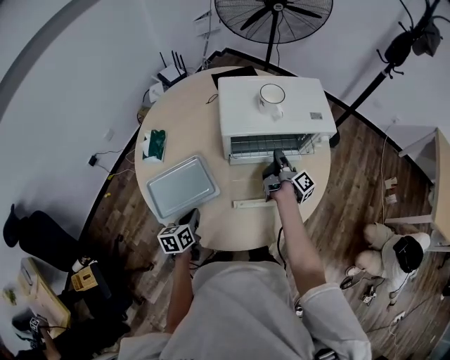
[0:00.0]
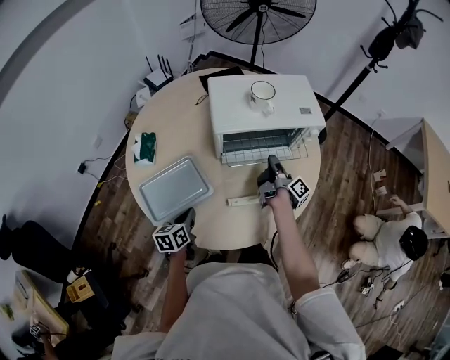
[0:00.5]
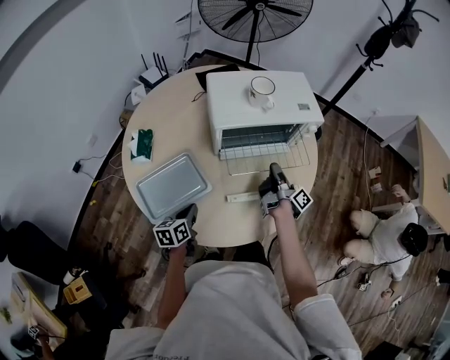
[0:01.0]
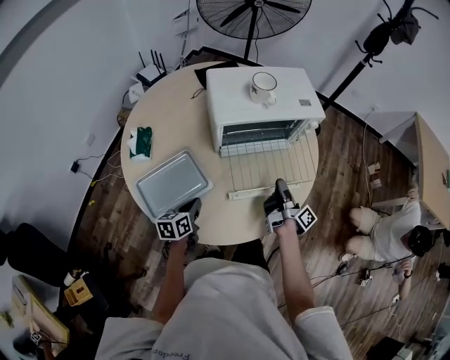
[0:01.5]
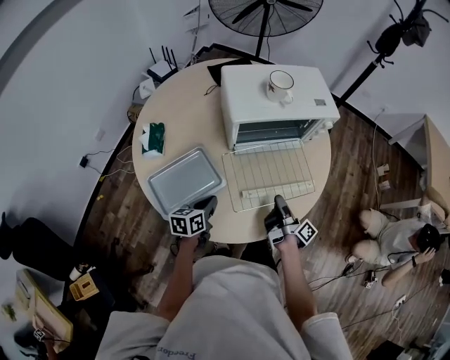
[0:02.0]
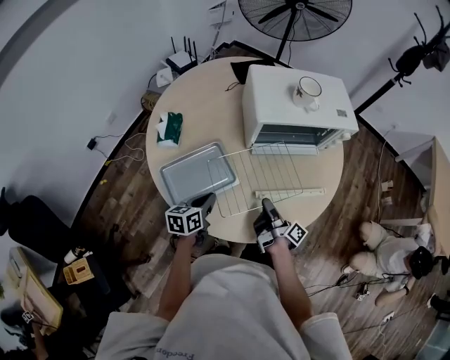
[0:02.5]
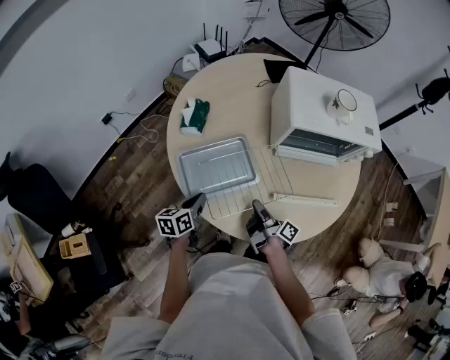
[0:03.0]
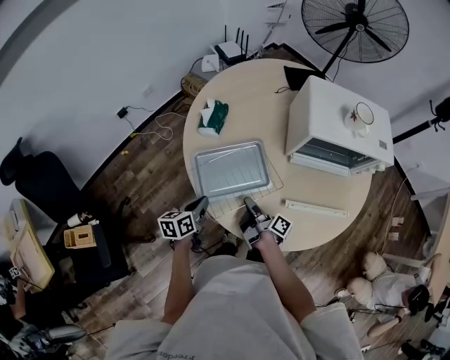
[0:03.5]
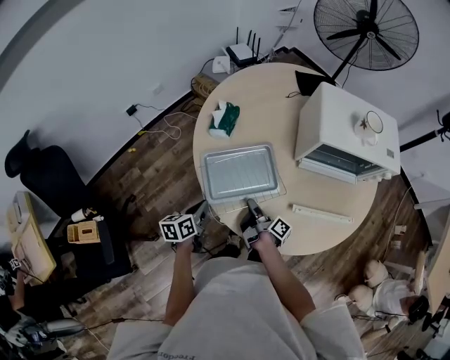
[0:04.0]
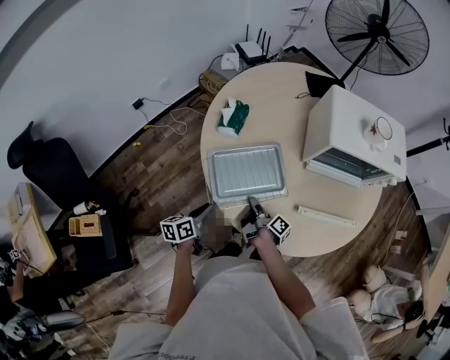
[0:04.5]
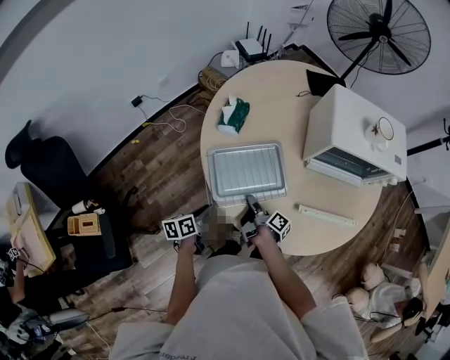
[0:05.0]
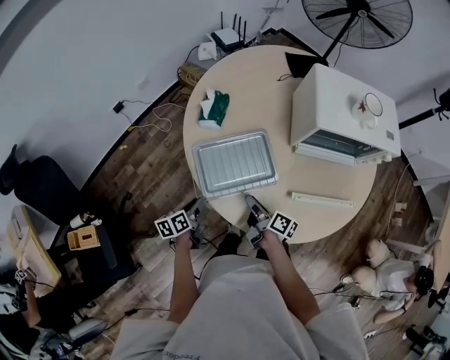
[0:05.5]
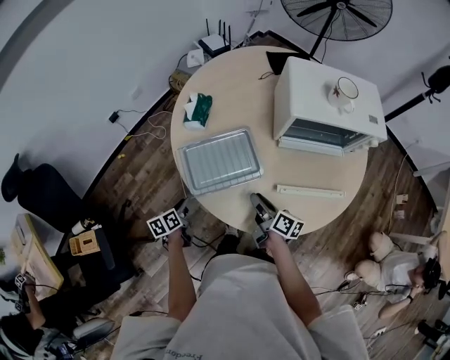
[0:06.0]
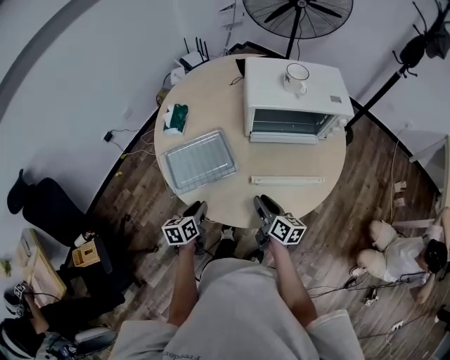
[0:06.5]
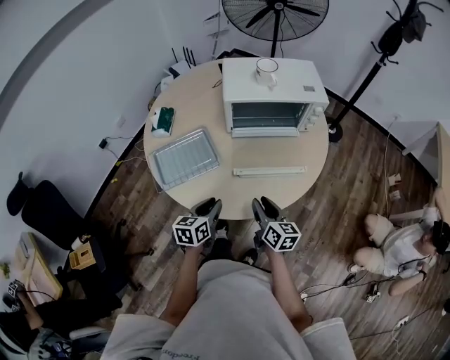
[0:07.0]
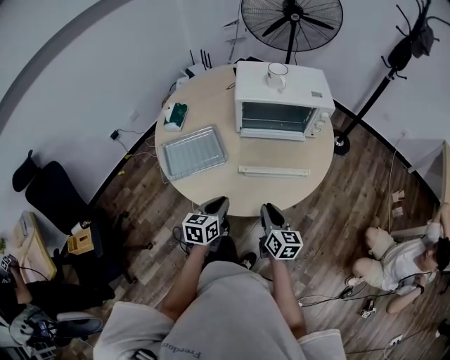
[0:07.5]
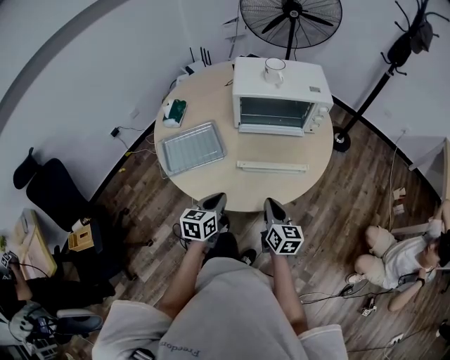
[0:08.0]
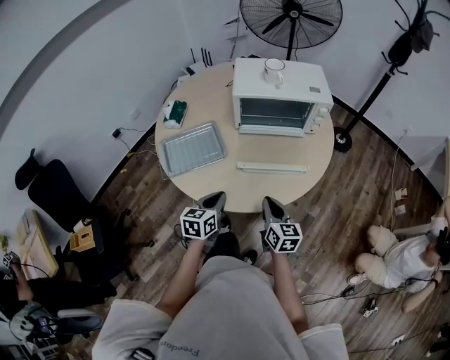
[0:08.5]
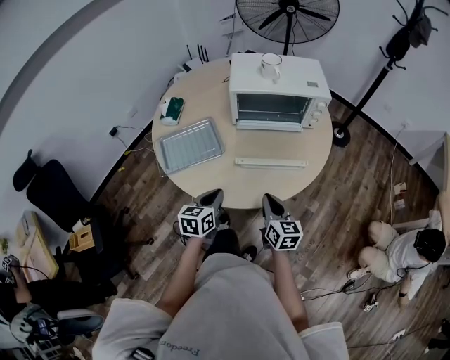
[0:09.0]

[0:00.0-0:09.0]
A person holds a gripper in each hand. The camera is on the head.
0:00.0 to 0:02.0: The left gripper rotates approximately 20 degrees.
0:02.0 to 0:04.5: The left gripper changes place by some 25 cm, and rotates roughly 30 degrees.
0:04.5 to 0:07.0: The left gripper ends up some 30 cm from where it was, and rotates approximately 30 degrees.
0:07.0 to 0:09.0: The left gripper closes.

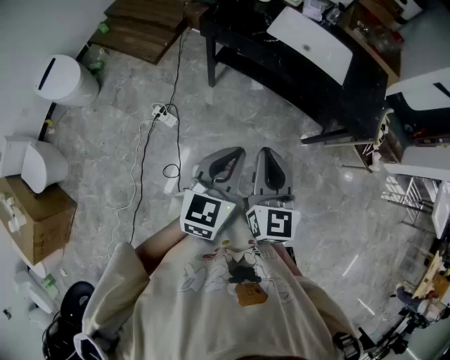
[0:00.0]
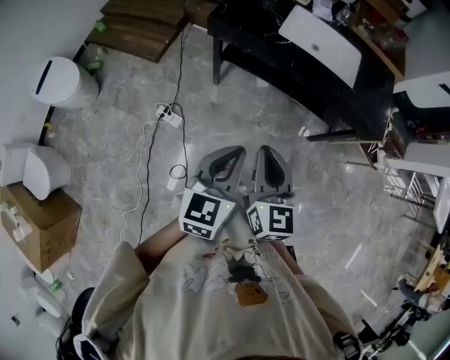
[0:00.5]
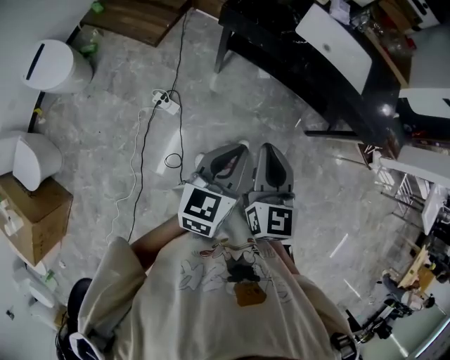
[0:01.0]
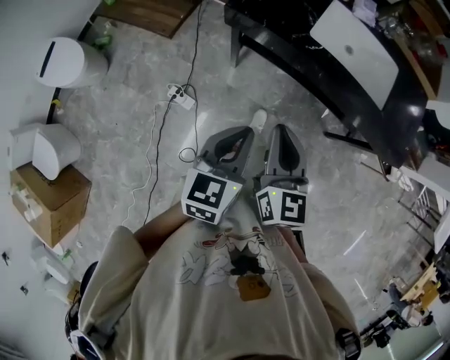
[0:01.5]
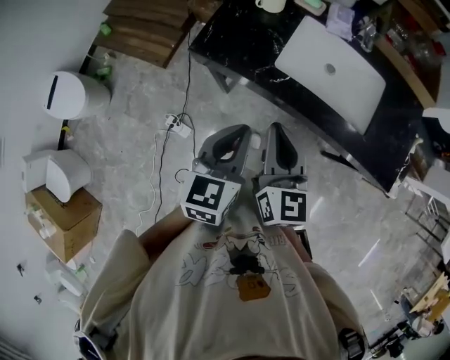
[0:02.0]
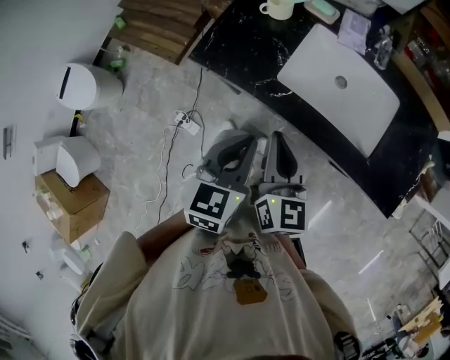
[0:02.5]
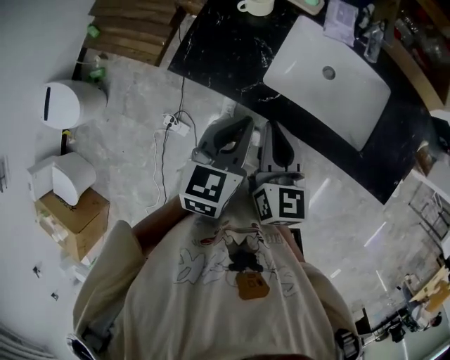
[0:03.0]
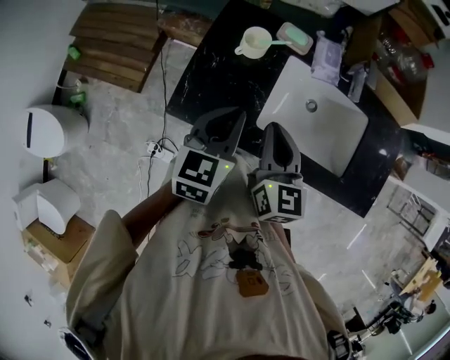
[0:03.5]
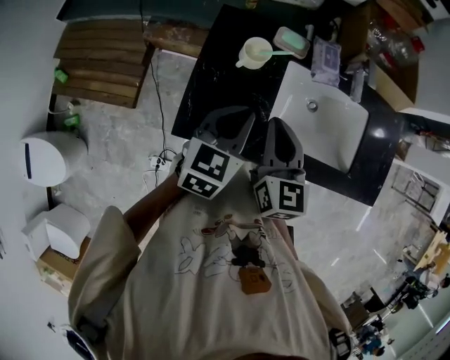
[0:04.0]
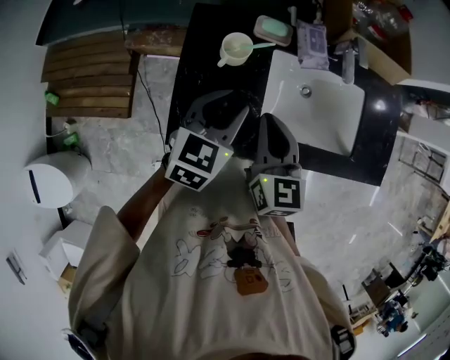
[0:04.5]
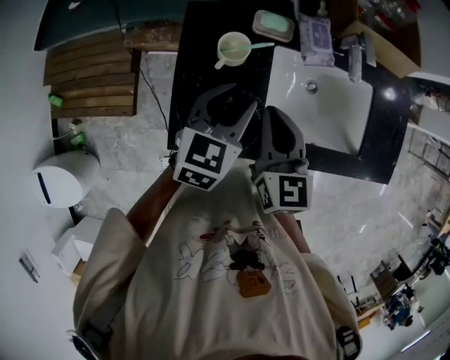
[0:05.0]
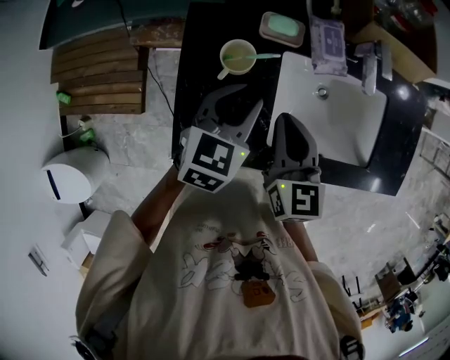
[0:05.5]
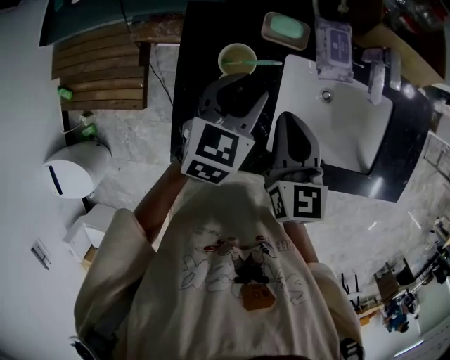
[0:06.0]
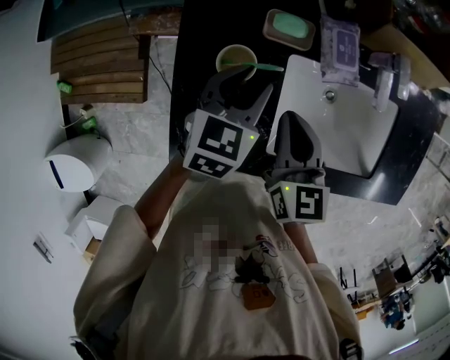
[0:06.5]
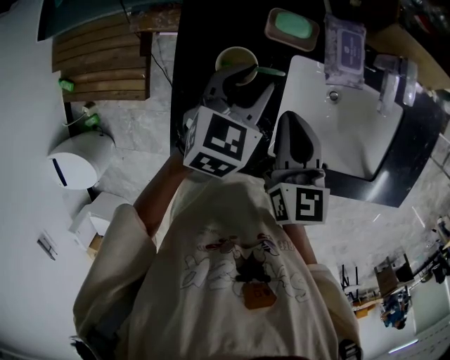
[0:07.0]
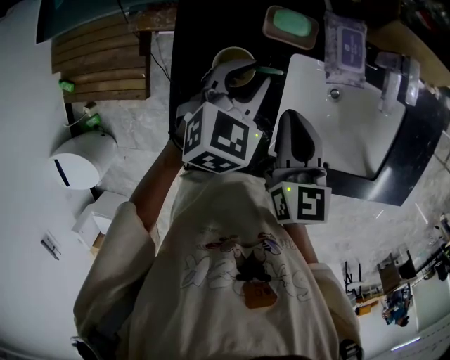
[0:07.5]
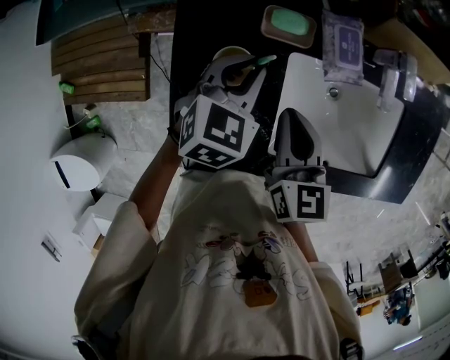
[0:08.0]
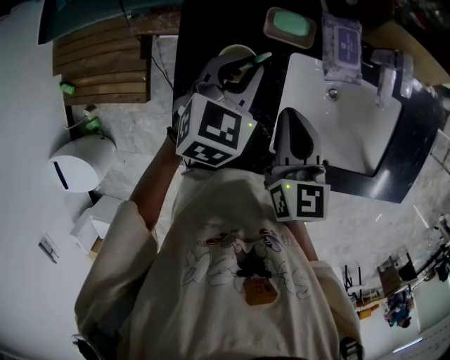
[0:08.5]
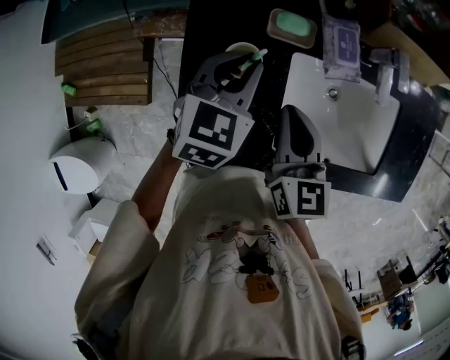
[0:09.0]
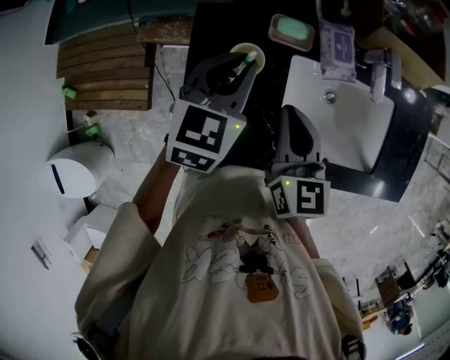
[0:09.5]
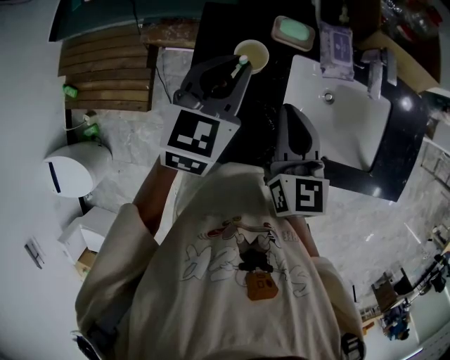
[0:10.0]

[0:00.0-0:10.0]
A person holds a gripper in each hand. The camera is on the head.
0:00.0 to 0:02.0: The two grippers go roughly 40 cm forward.
0:02.0 to 0:04.0: The grippers both shift forward by about 30 cm. The left gripper changes its angle by some 30 degrees.
0:04.0 to 0:06.0: Both grippers move forward and downward, some 15 cm. The left gripper opens up.
0:06.0 to 0:08.0: The left gripper moves forward, about 5 cm, and closes.
0:08.0 to 0:10.0: The left gripper is displaced upward, backward and to the left by about 15 cm, and rotates about 20 degrees; the right gripper moves upward and backward, approximately 10 cm.

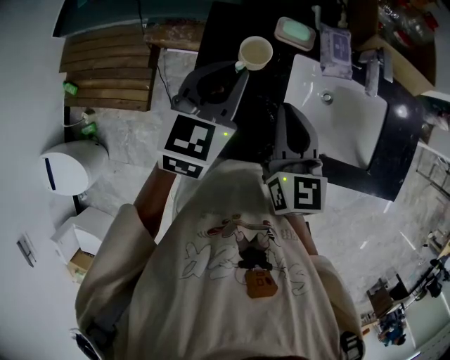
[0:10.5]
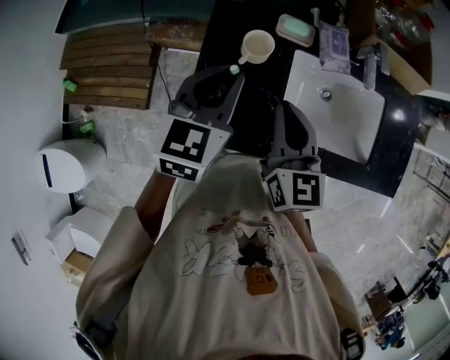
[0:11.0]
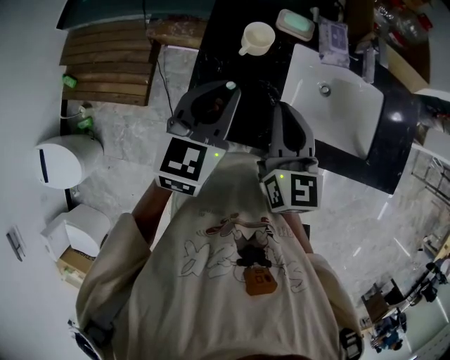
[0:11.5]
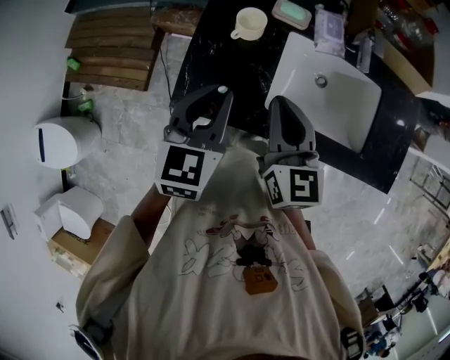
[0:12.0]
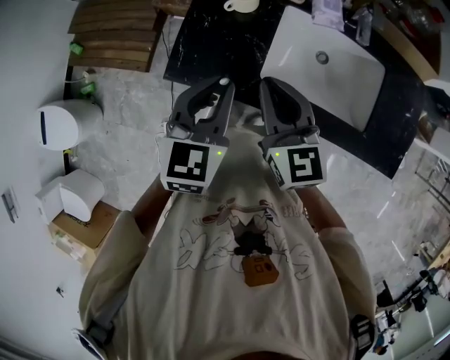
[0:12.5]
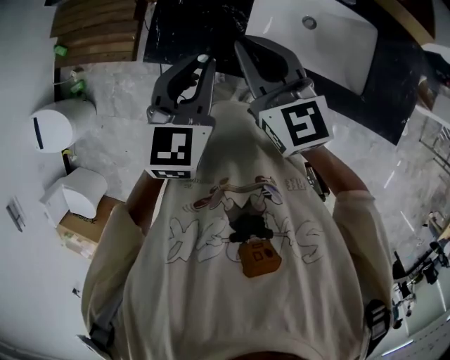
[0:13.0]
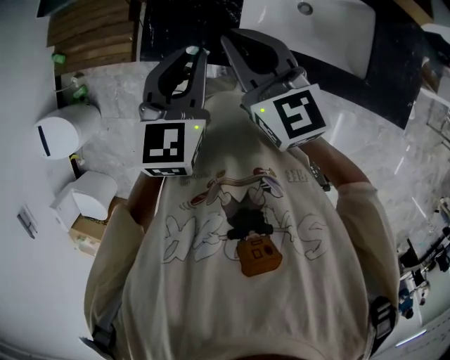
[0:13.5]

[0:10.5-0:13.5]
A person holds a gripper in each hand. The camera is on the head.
0:10.5 to 0:12.0: The right gripper heads backward, covering roughly 10 cm. The left gripper shifts approximately 15 cm backward.
0:12.0 to 0:13.5: The grippers both shift backward by about 5 cm.

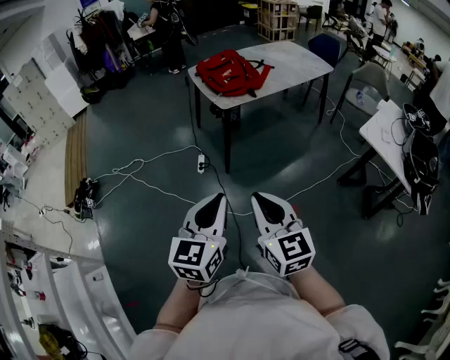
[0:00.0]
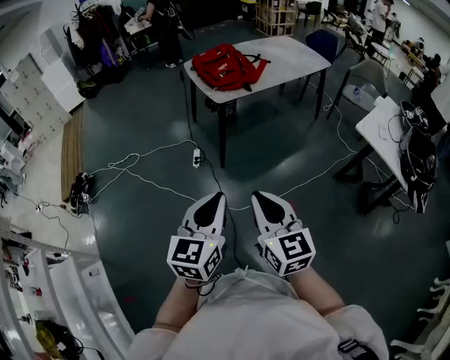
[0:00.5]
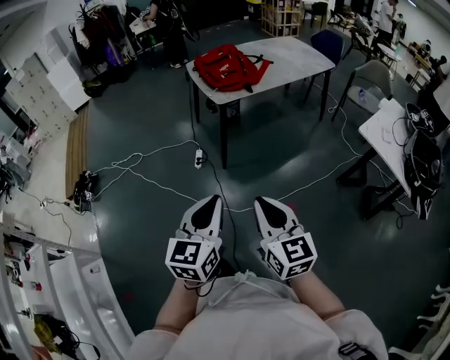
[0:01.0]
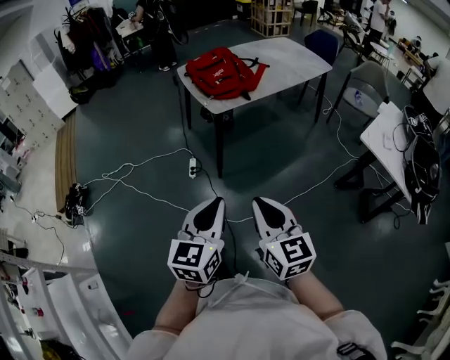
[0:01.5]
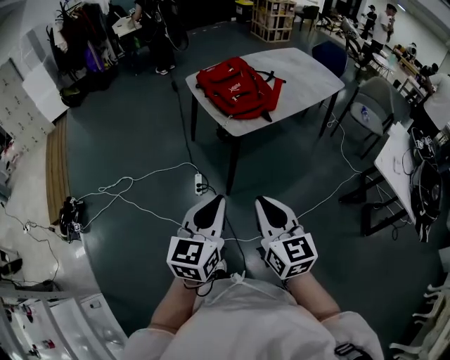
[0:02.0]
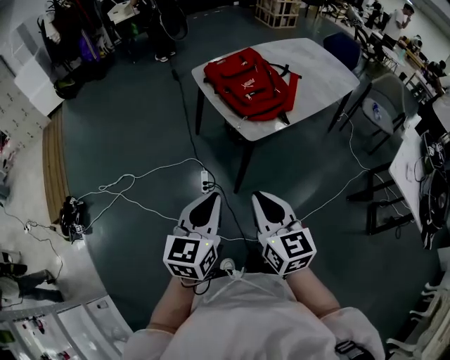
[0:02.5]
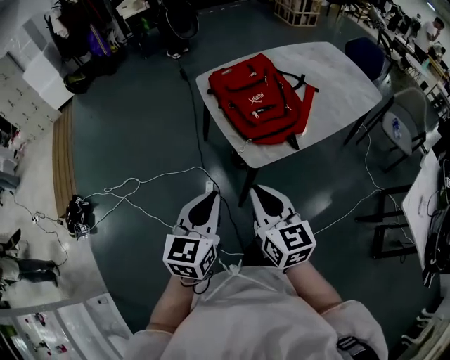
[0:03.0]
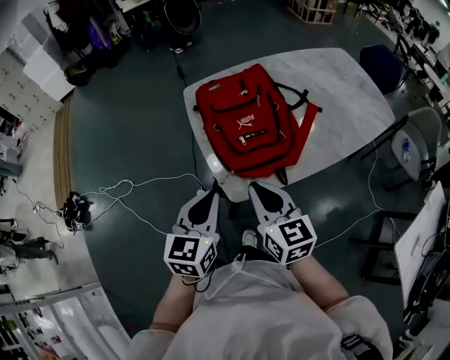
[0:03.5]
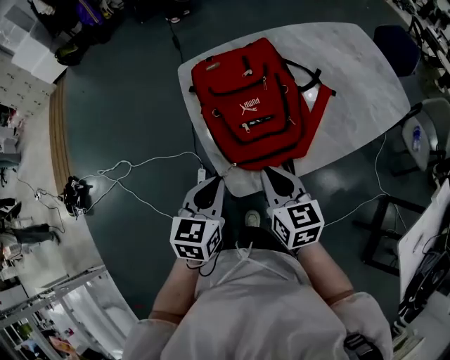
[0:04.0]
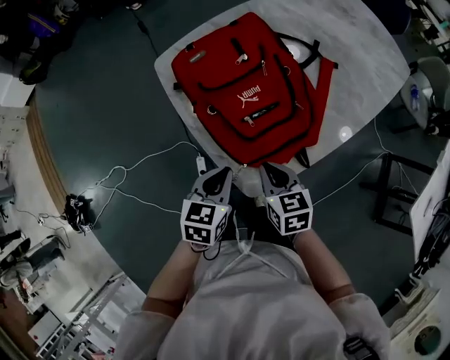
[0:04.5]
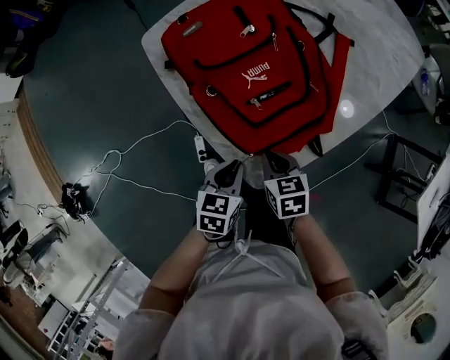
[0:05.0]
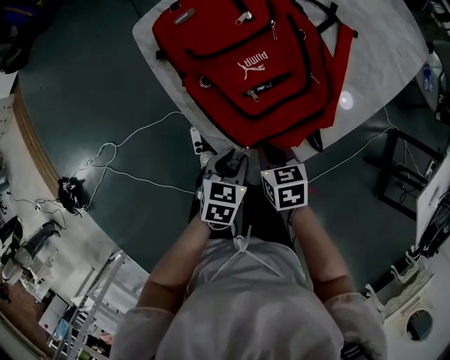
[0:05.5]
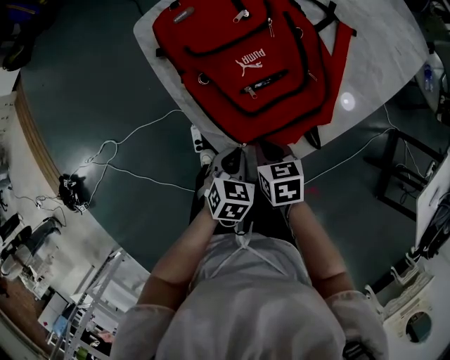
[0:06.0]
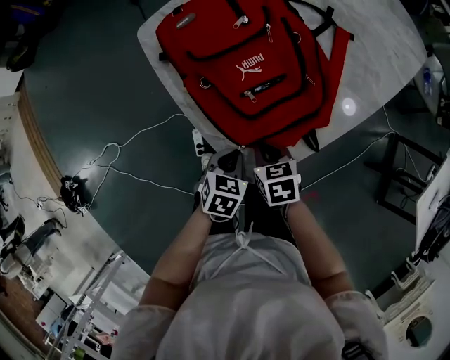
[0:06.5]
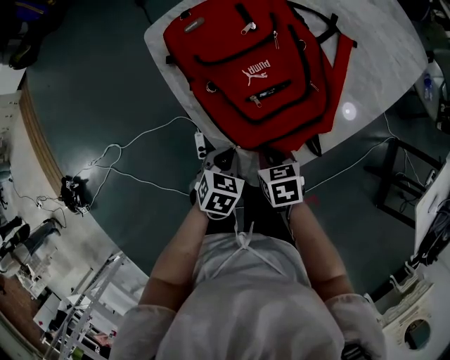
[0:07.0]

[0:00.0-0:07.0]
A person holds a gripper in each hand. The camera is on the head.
0:00.0 to 0:02.0: The grippers both shift forward and to the left by some 30 cm.
0:02.0 to 0:03.5: The two grippers travel together, forward, about 40 cm.
0:03.5 to 0:05.0: Both grippers travel together downward, about 25 cm. The right gripper angles its fingers downward, by some 40 degrees. Meanwhile the left gripper turns by some 30 degrees.
0:05.0 to 0:07.0: The left gripper opens, then closes once more.
